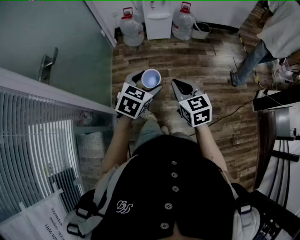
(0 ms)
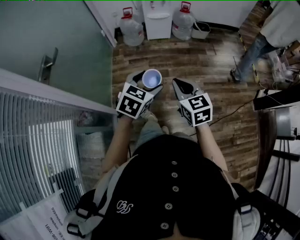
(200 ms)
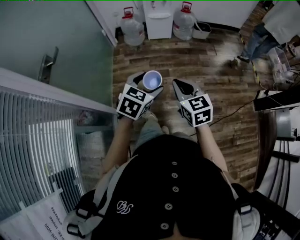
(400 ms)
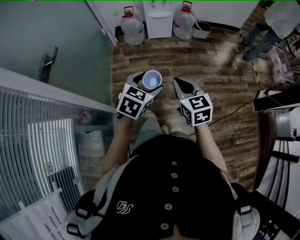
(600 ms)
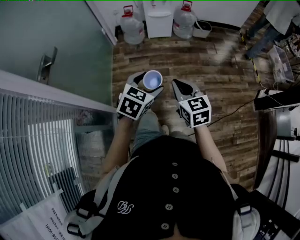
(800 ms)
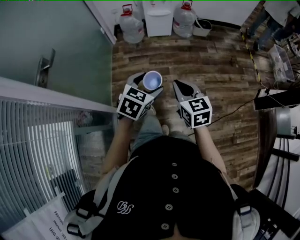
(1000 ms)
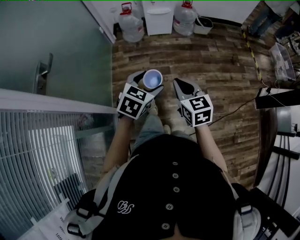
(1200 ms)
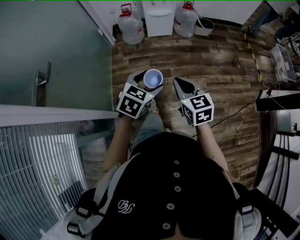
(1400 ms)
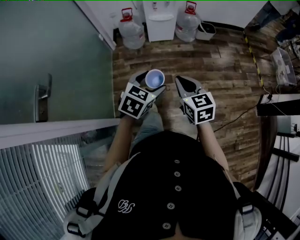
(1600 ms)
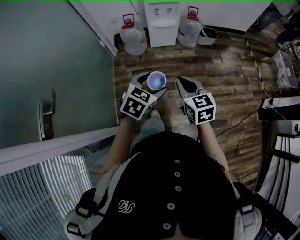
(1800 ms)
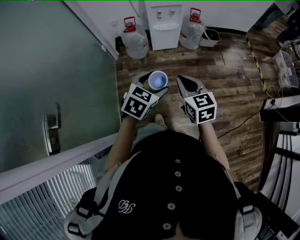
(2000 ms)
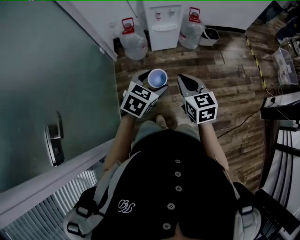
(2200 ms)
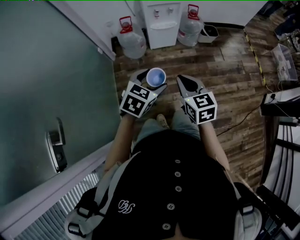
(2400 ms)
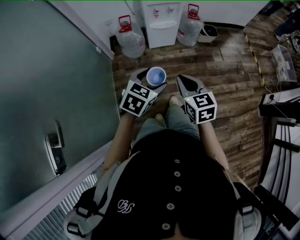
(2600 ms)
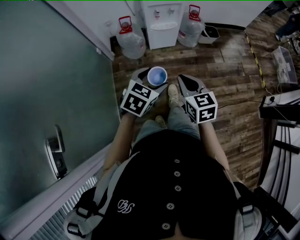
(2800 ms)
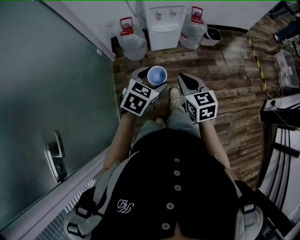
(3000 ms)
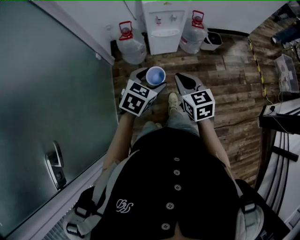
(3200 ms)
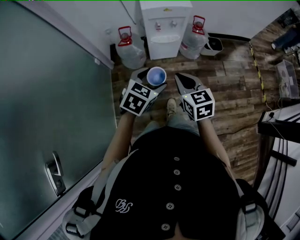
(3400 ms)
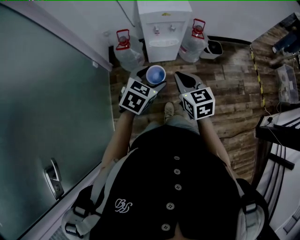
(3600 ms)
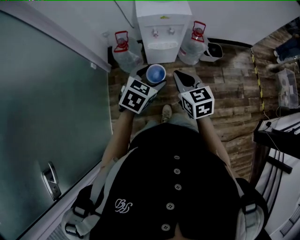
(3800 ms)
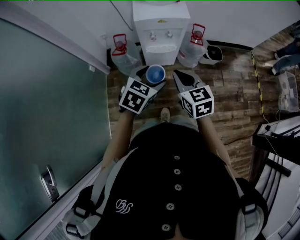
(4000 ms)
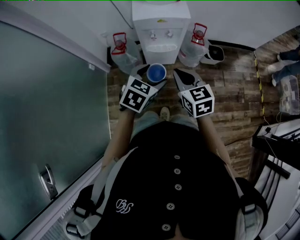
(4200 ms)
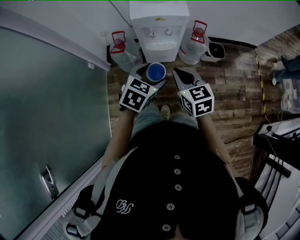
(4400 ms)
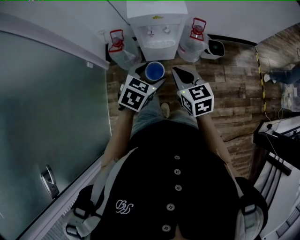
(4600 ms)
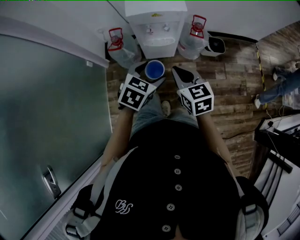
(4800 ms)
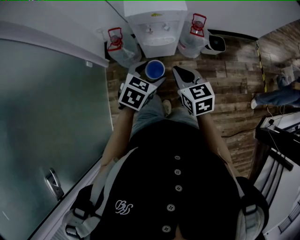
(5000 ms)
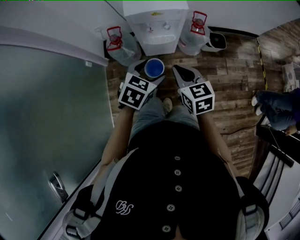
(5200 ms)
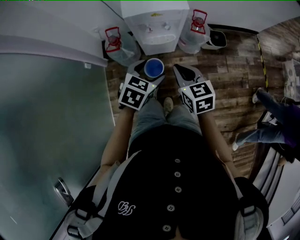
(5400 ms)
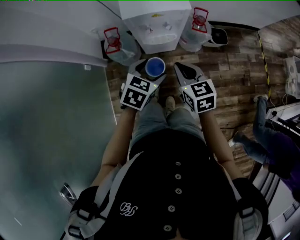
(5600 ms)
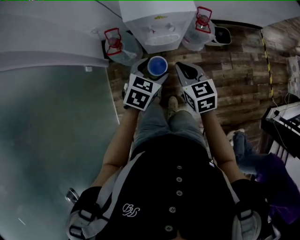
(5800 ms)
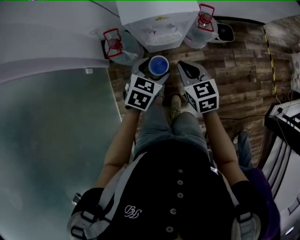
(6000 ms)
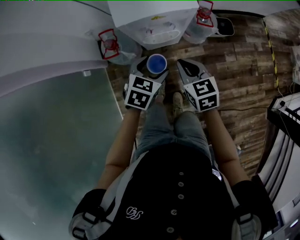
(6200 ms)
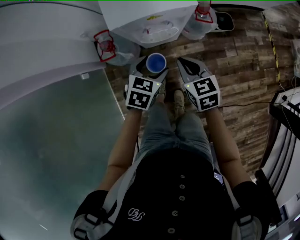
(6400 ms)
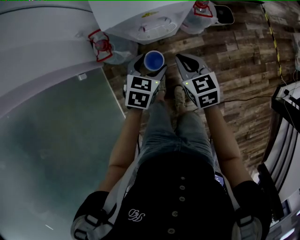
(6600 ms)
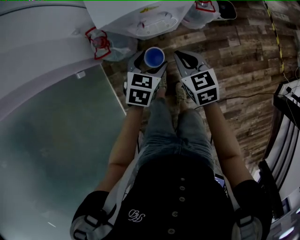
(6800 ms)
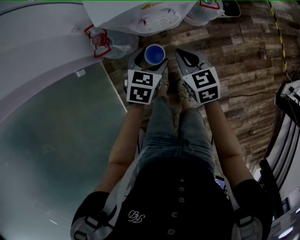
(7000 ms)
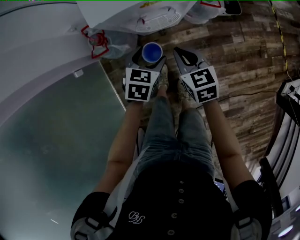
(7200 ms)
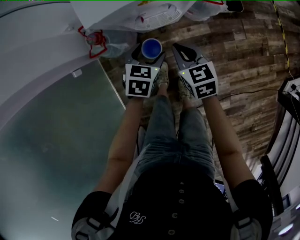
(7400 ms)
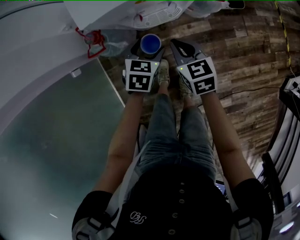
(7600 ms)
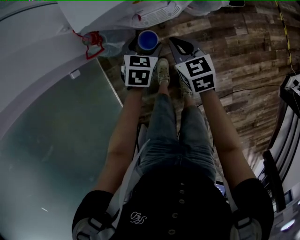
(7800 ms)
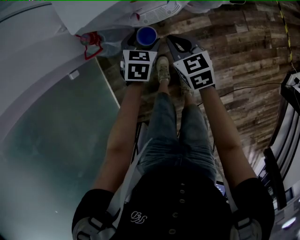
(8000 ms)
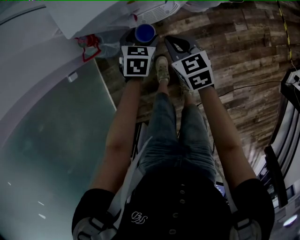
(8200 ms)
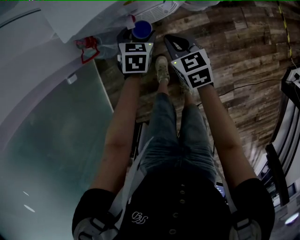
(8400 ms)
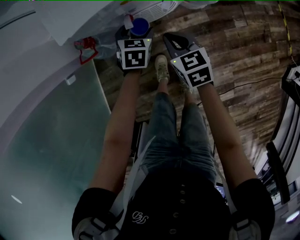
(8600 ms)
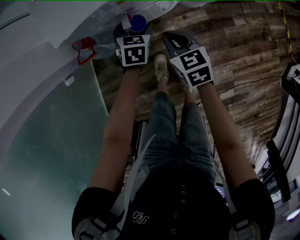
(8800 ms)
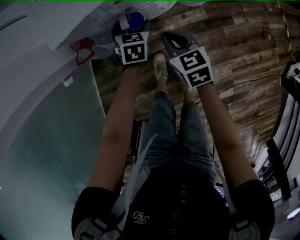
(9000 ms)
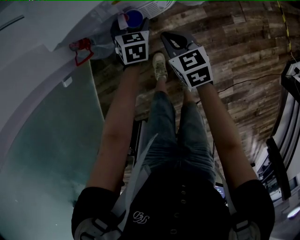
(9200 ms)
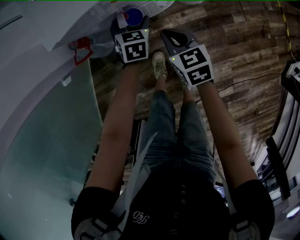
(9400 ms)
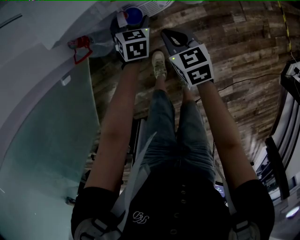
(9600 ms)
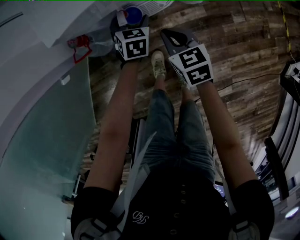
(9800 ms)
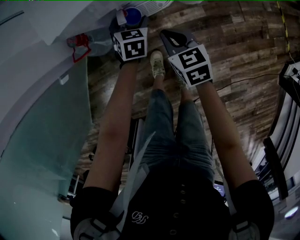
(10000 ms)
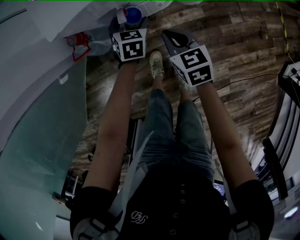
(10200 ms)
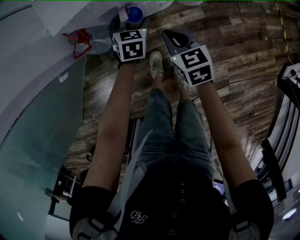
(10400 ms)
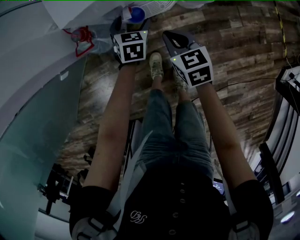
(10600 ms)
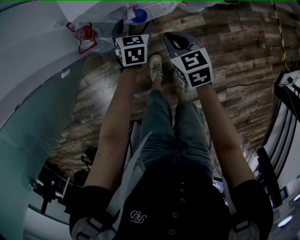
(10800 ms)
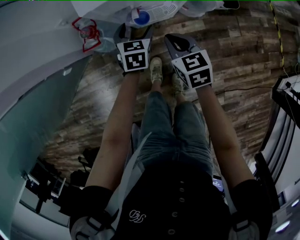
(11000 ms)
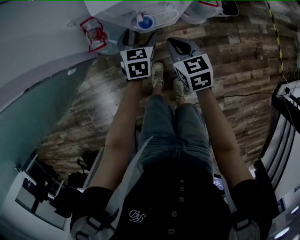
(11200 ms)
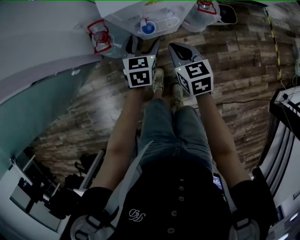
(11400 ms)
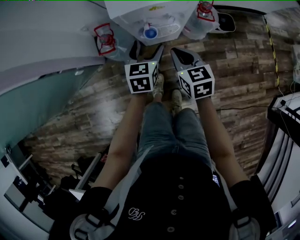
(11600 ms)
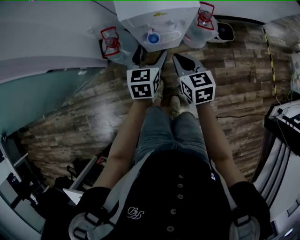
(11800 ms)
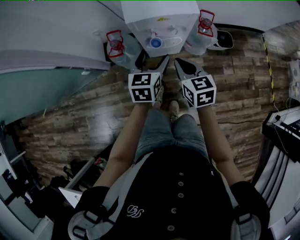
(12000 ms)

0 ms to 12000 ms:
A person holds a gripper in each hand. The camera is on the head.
0 ms to 1600 ms: Both grippers move forward, about 15 cm.
1600 ms to 3000 ms: Both grippers move forward, about 20 cm.
3000 ms to 4400 ms: The two grippers go some 25 cm forward.
4400 ms to 6000 ms: The grippers both shift forward and downward by about 15 cm.
6000 ms to 7600 ms: The grippers both shift downward by about 20 cm.
7600 ms to 9000 ms: The left gripper goes about 10 cm forward and downward. Meanwhile the right gripper shifts some 5 cm downward.
9000 ms to 10400 ms: The grippers stay close to where they were, moving slightly.
10400 ms to 12000 ms: The right gripper is displaced upward by about 20 cm. The left gripper heads upward and backward, covering some 30 cm, and changes its angle by roughly 30 degrees.

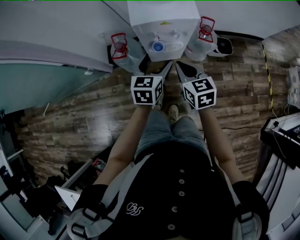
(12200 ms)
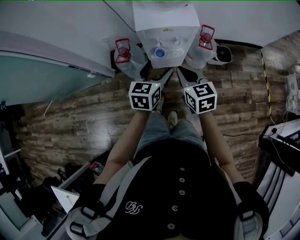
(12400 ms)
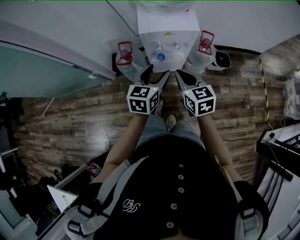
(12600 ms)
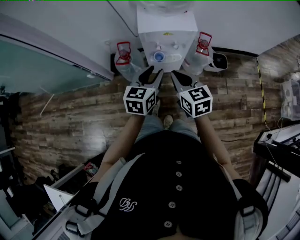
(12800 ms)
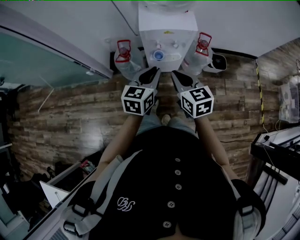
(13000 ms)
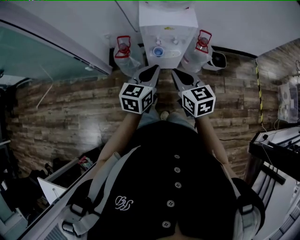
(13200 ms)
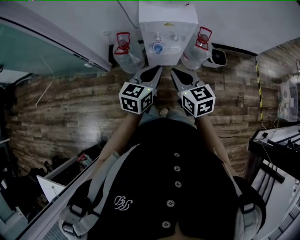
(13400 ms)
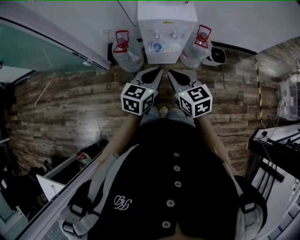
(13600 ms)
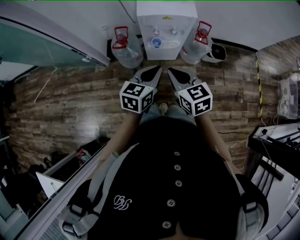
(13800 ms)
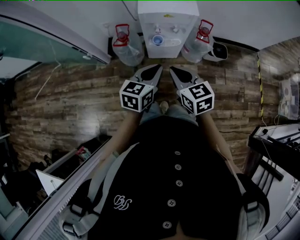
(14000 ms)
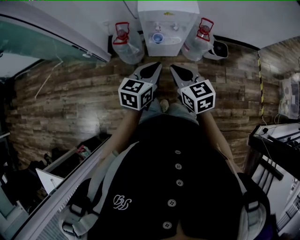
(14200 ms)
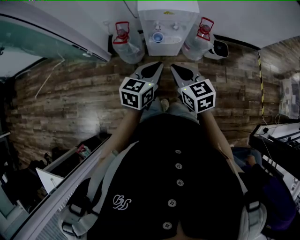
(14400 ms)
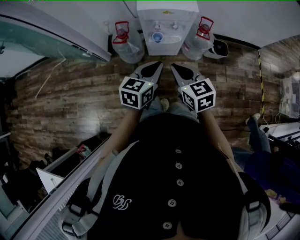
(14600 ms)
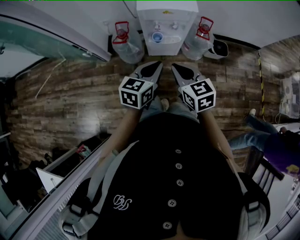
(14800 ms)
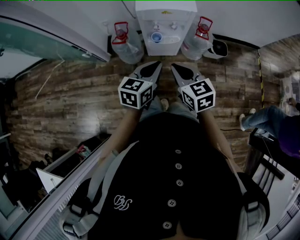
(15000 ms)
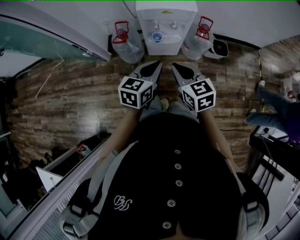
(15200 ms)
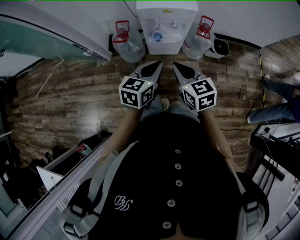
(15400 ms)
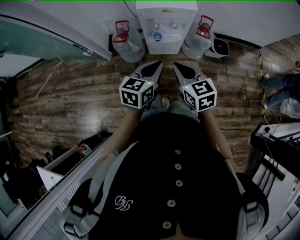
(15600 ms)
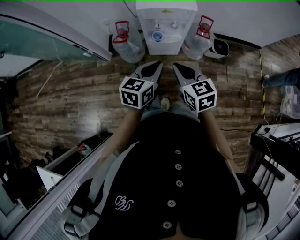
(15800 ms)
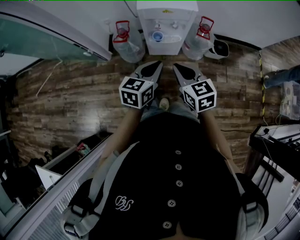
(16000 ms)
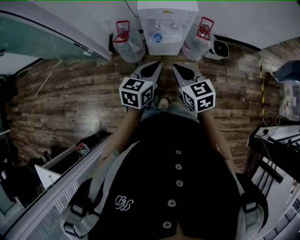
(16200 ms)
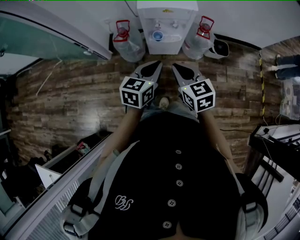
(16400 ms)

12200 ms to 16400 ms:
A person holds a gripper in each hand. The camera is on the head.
12200 ms to 13600 ms: The grippers both shift backward and upward by about 10 cm. The left gripper closes.
13600 ms to 15000 ms: The grippers move only a little.
15000 ms to 16400 ms: Neither gripper changes place.

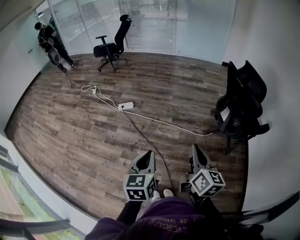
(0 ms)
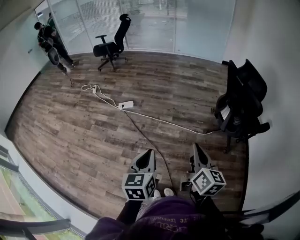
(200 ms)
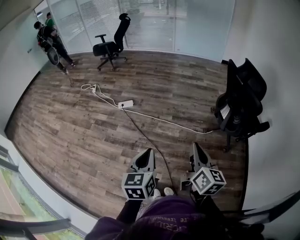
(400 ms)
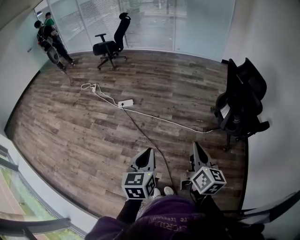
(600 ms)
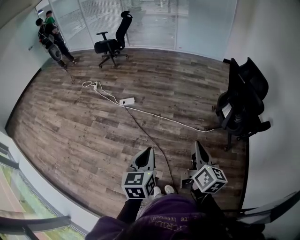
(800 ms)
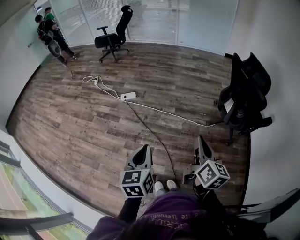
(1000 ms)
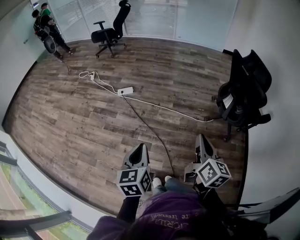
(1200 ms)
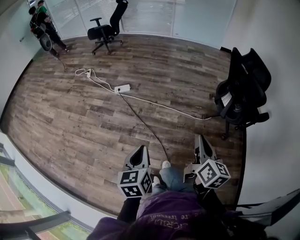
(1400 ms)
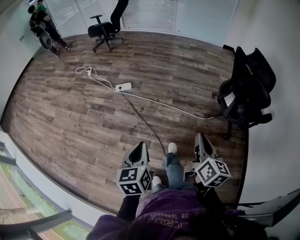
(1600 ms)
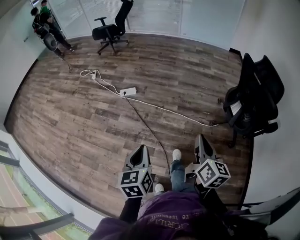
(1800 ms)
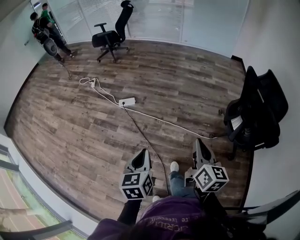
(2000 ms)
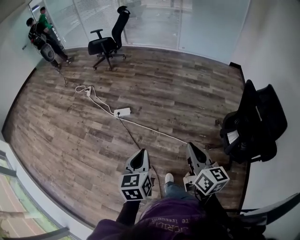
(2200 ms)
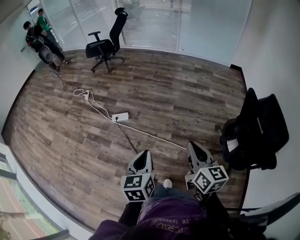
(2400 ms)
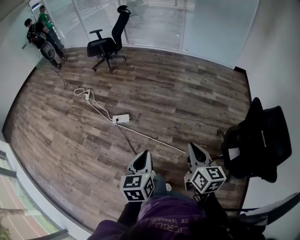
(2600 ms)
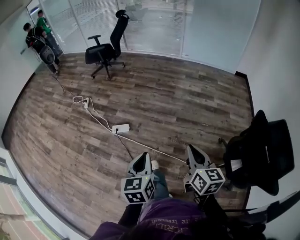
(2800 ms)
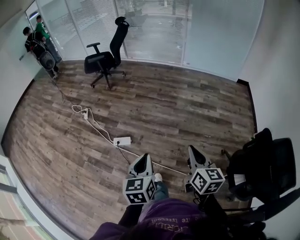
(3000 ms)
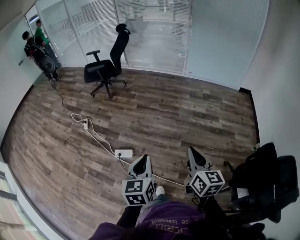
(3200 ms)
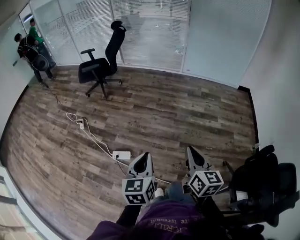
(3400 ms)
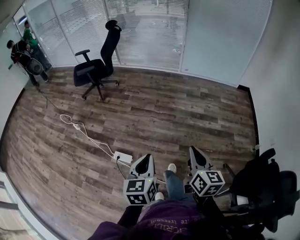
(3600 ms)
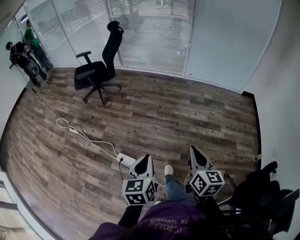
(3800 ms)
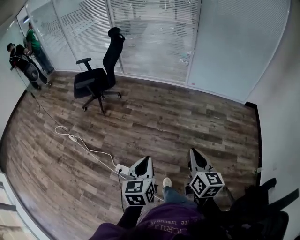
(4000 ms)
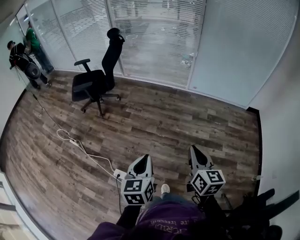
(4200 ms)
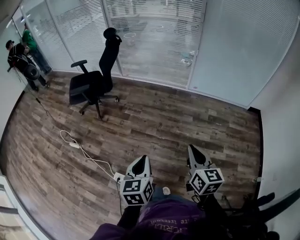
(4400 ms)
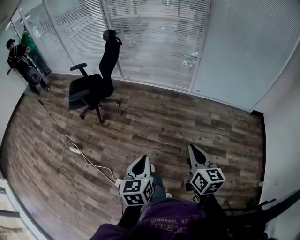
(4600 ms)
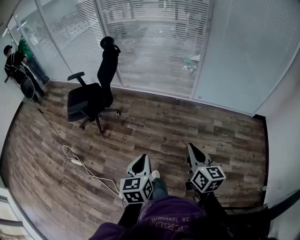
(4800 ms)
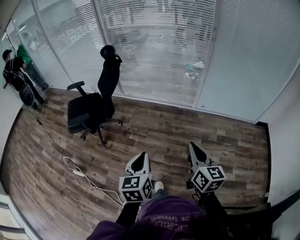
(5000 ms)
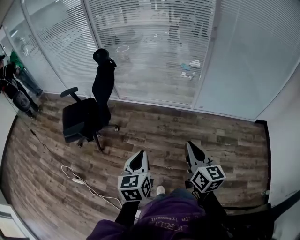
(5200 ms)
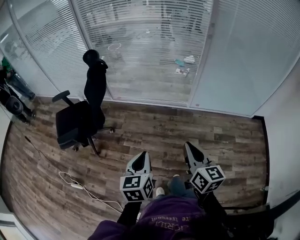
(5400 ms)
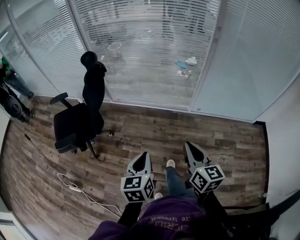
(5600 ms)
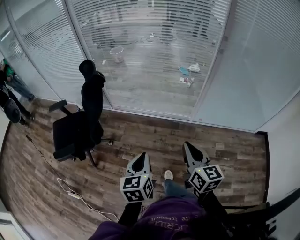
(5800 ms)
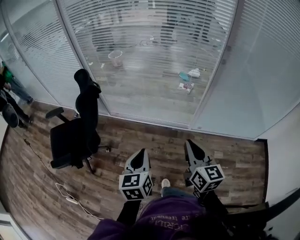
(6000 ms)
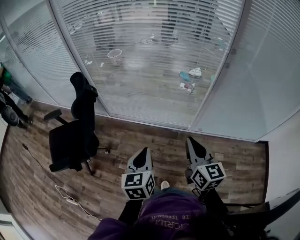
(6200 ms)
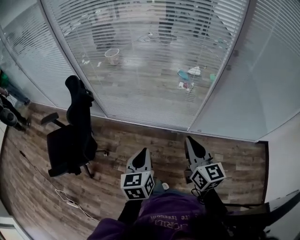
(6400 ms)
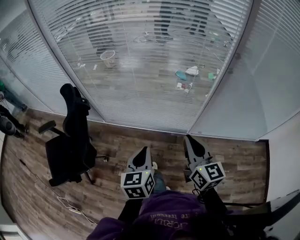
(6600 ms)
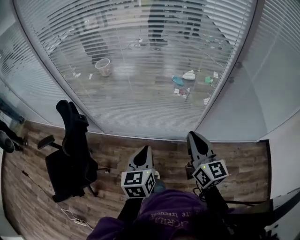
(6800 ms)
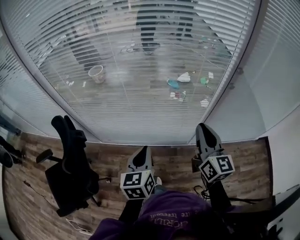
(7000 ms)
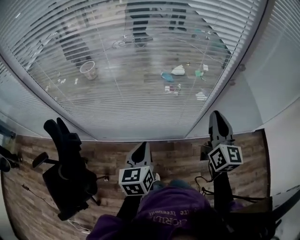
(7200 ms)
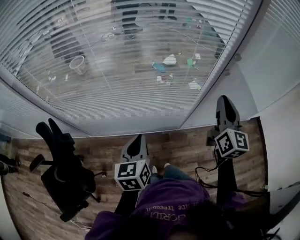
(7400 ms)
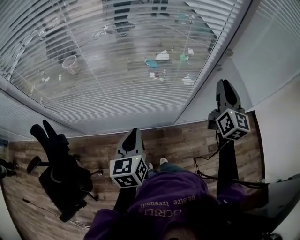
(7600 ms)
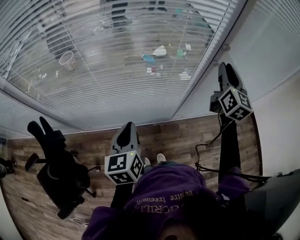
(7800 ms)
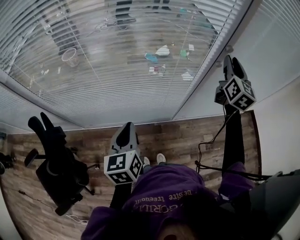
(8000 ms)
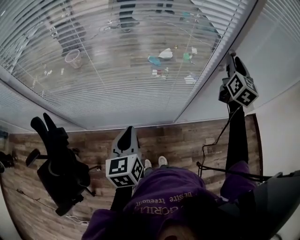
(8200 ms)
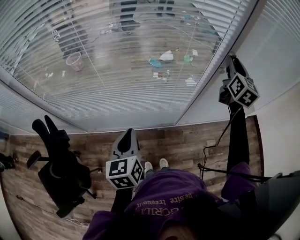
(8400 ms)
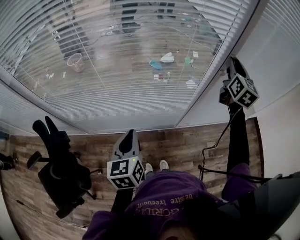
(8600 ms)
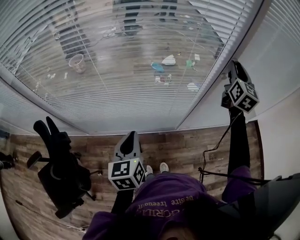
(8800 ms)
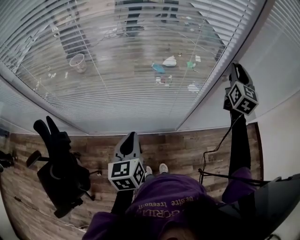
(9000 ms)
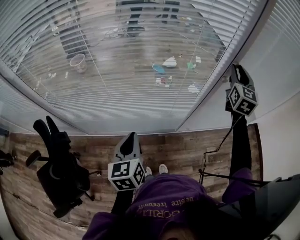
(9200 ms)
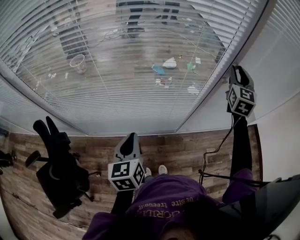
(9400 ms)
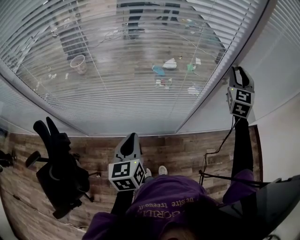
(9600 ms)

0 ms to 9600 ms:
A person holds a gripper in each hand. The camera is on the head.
0 ms to 1600 ms: The left gripper heads to the left, covering approximately 10 cm, while the right gripper ends up some 5 cm from where it was.
1600 ms to 3200 ms: The pair of grippers is taken forward, roughly 70 cm.
3200 ms to 4800 ms: Both grippers are carried forward, some 70 cm.
4800 ms to 6400 ms: The pair of grippers is taken forward, roughly 60 cm.
6400 ms to 8000 ms: The left gripper changes place by about 30 cm. Meanwhile the right gripper moves roughly 50 cm, rotates roughly 50 degrees, and opens up.
8000 ms to 9600 ms: The right gripper rotates approximately 30 degrees.
